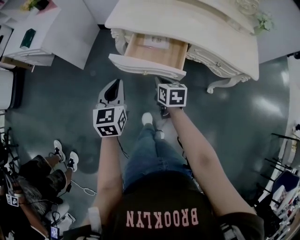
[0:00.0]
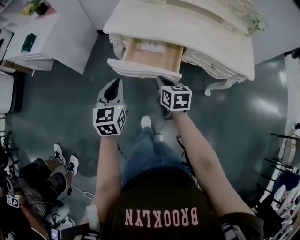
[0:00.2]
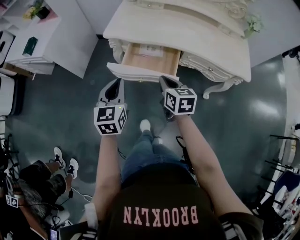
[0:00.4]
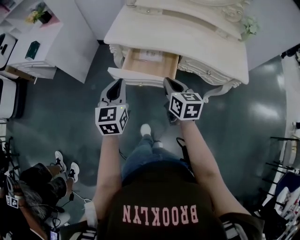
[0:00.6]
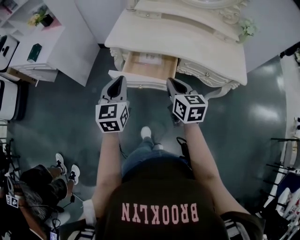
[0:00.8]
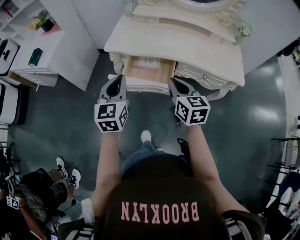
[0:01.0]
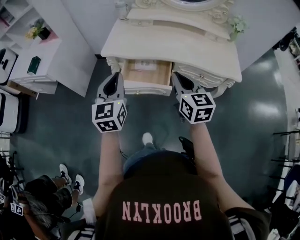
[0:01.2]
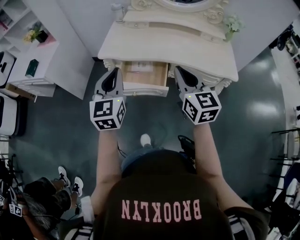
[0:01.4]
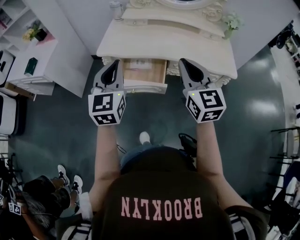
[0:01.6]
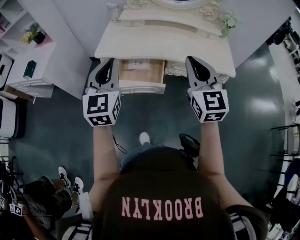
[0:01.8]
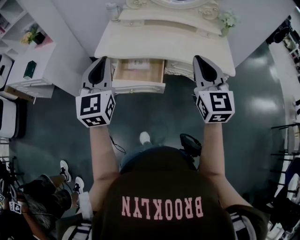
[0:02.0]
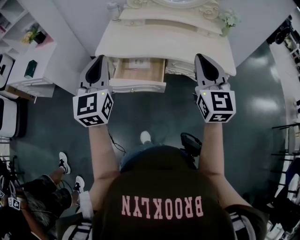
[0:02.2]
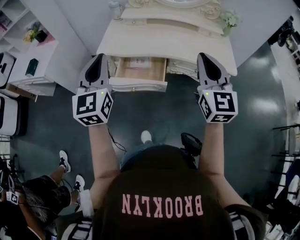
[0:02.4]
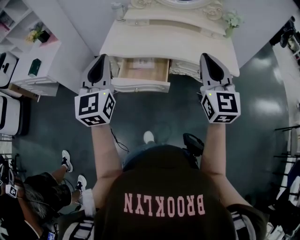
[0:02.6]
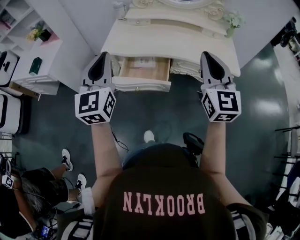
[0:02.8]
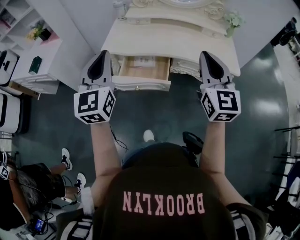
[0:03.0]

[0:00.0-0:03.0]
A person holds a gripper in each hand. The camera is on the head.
0:00.0 to 0:01.6: The left gripper heads upward and to the right, covering approximately 20 cm, and changes its angle by some 20 degrees. The right gripper travels upward and to the right by some 35 cm, and tips its fingers upward by roughly 40 degrees.
0:01.6 to 0:03.0: The left gripper heads upward, covering some 5 cm. The right gripper heads to the right, covering some 5 cm.

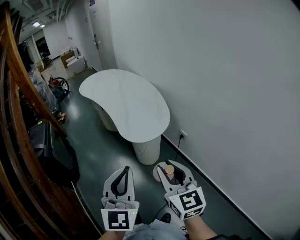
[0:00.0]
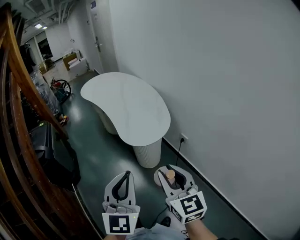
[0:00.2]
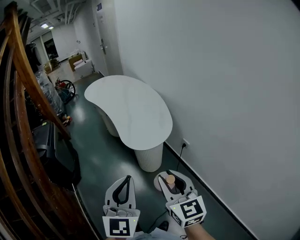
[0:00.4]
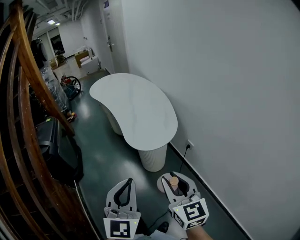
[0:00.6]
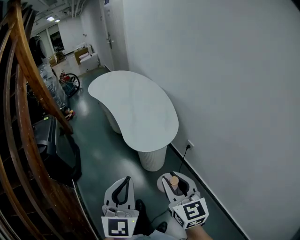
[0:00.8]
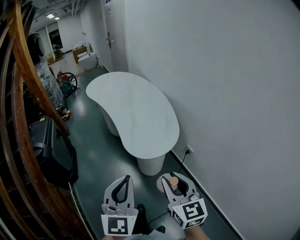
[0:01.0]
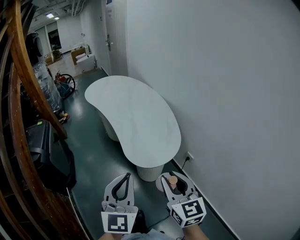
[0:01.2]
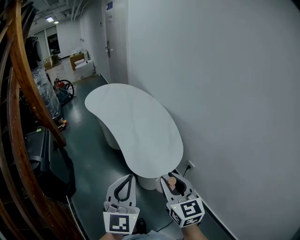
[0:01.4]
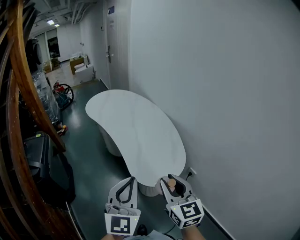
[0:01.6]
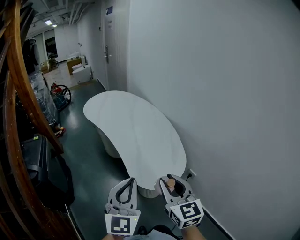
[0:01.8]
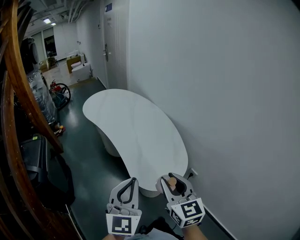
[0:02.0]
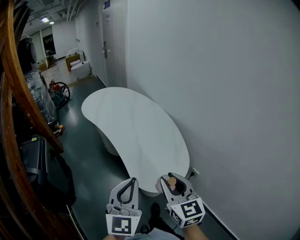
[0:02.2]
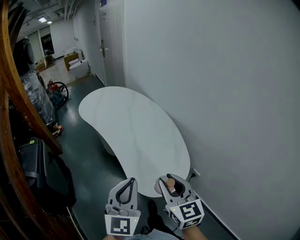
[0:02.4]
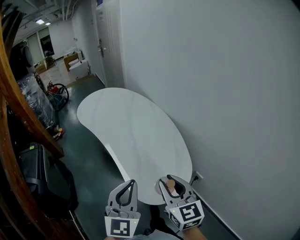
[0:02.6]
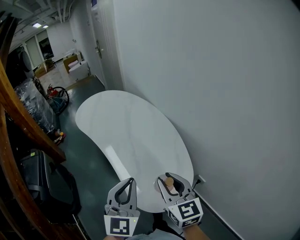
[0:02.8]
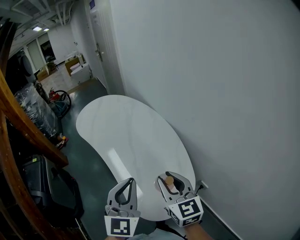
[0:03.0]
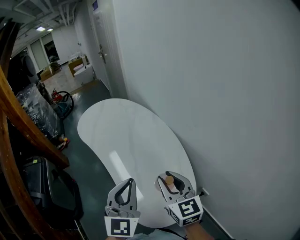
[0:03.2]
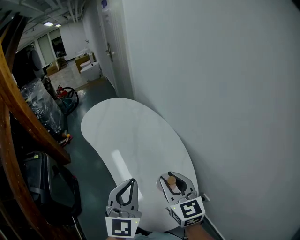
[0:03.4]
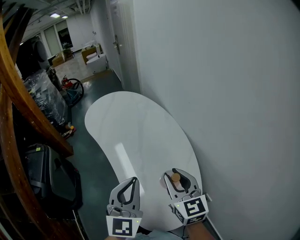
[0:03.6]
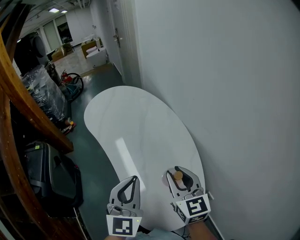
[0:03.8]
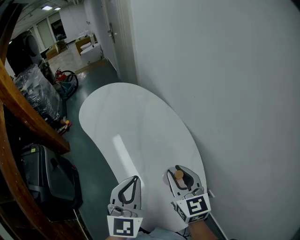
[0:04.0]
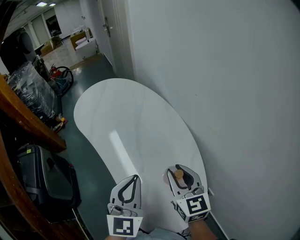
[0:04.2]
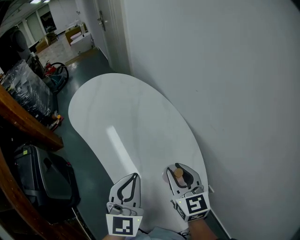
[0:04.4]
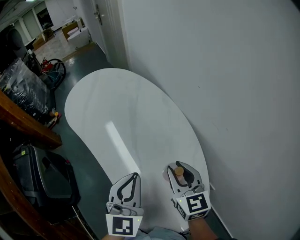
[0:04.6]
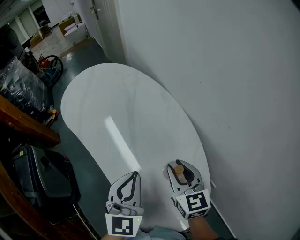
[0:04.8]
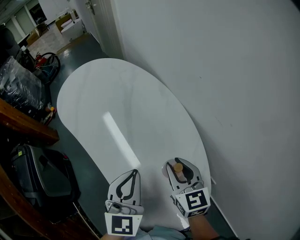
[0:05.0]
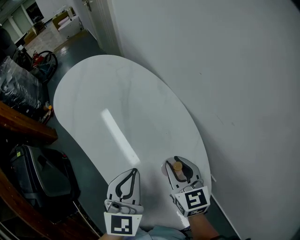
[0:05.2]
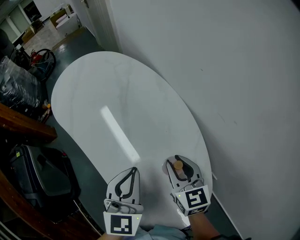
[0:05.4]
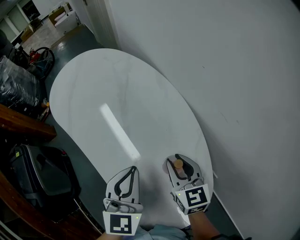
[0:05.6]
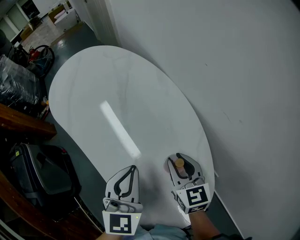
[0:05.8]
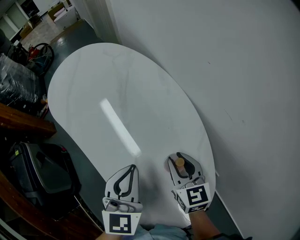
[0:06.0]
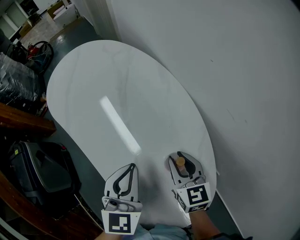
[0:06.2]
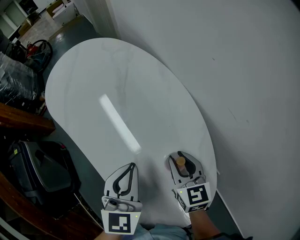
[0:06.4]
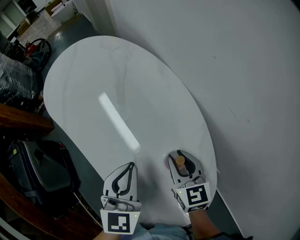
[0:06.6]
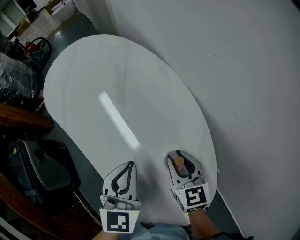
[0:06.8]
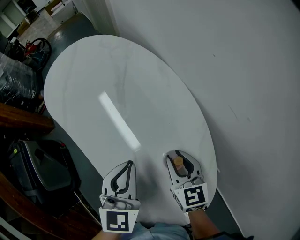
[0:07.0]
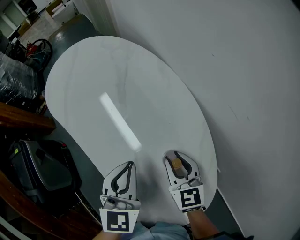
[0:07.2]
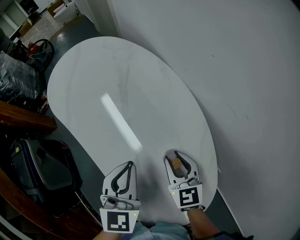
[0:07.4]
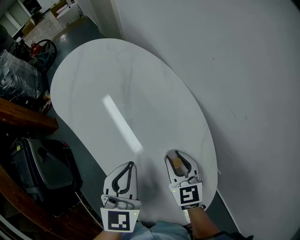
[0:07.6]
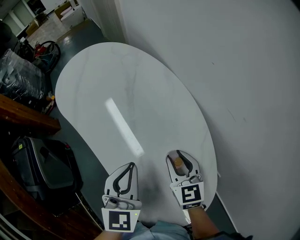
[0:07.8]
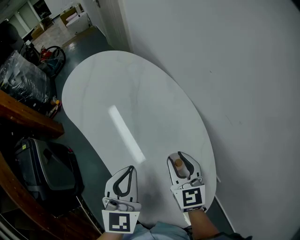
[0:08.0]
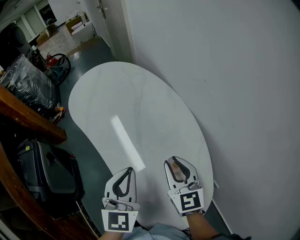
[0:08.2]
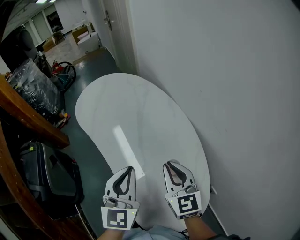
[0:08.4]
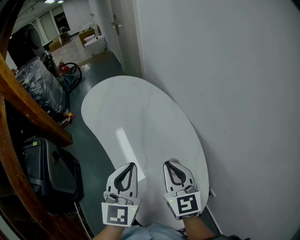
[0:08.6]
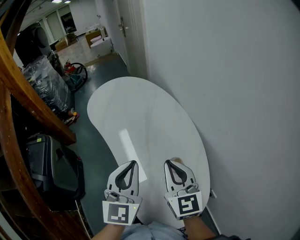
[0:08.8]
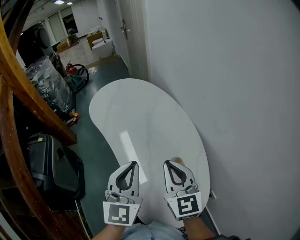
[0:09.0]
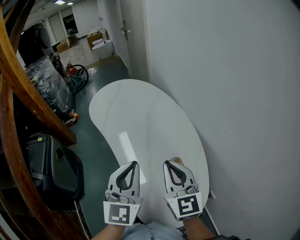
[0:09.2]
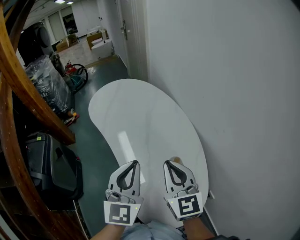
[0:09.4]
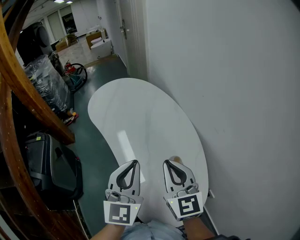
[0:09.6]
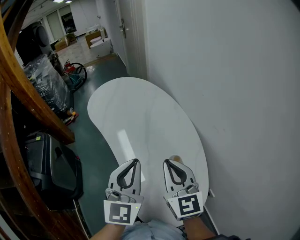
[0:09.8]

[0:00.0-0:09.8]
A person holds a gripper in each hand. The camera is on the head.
0:00.0 to 0:01.4: The two grippers go roughly 15 cm forward. The left gripper swivels about 20 degrees.
0:01.4 to 0:02.8: The grippers both shift forward by about 15 cm. The left gripper rotates about 20 degrees.
0:02.8 to 0:04.2: Both grippers travel together forward, roughly 15 cm.
0:04.2 to 0:05.6: Both grippers travel together downward, approximately 5 cm.
0:05.6 to 0:07.0: The grippers move only a little.
0:07.0 to 0:08.4: The two grippers go some 10 cm upward.
0:08.4 to 0:09.8: The left gripper changes place by roughly 5 cm; the right gripper is displaced upward by approximately 5 cm.

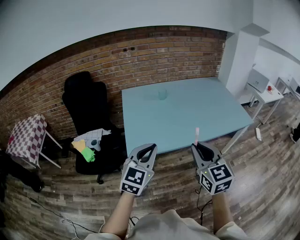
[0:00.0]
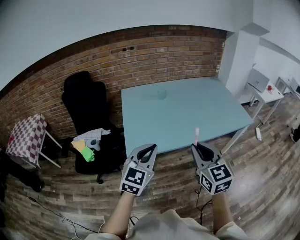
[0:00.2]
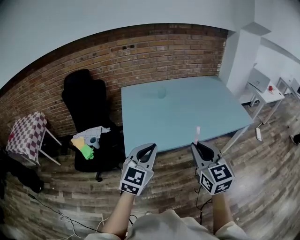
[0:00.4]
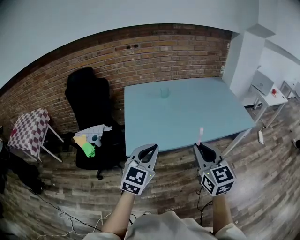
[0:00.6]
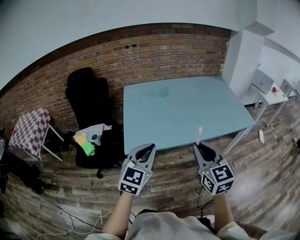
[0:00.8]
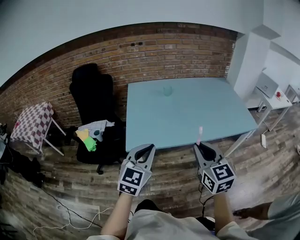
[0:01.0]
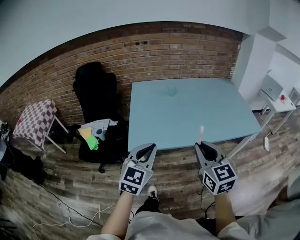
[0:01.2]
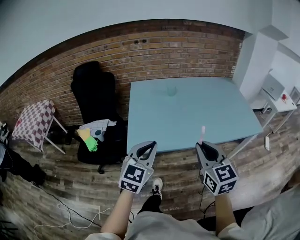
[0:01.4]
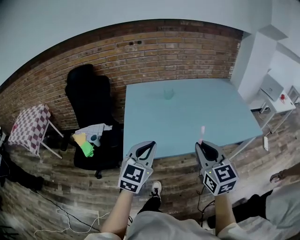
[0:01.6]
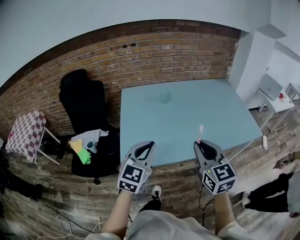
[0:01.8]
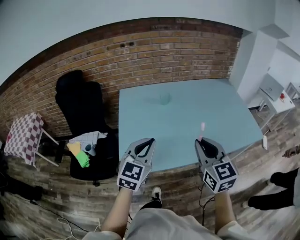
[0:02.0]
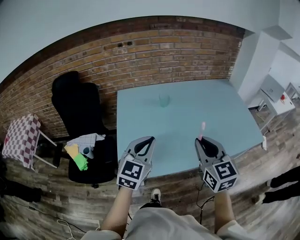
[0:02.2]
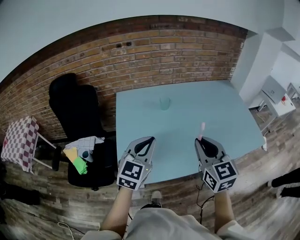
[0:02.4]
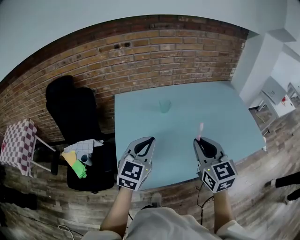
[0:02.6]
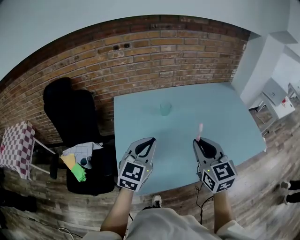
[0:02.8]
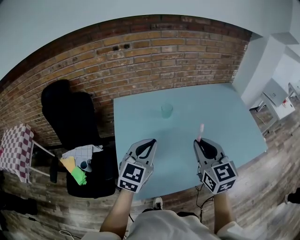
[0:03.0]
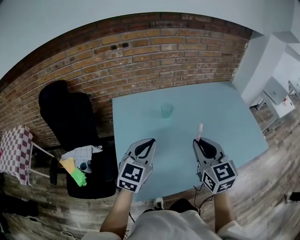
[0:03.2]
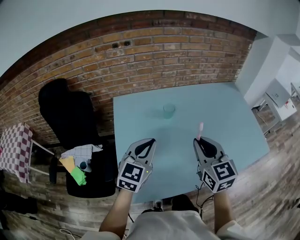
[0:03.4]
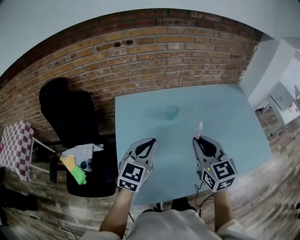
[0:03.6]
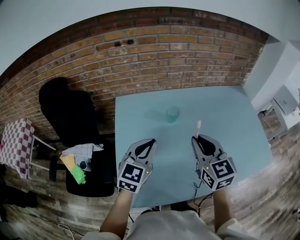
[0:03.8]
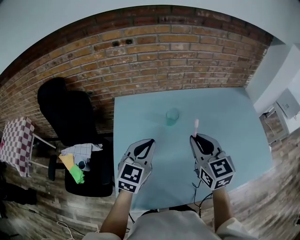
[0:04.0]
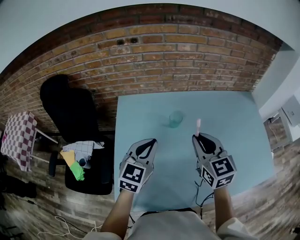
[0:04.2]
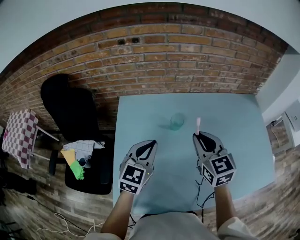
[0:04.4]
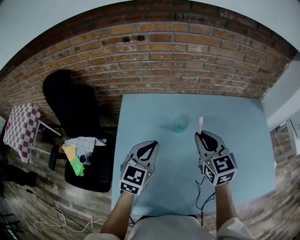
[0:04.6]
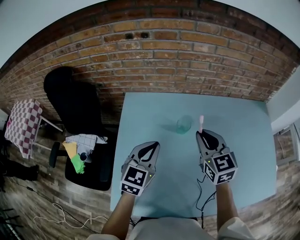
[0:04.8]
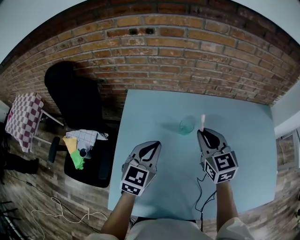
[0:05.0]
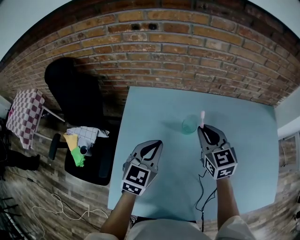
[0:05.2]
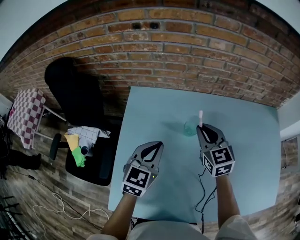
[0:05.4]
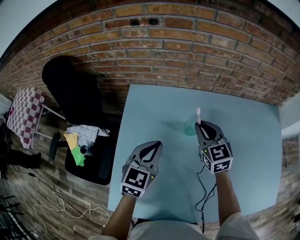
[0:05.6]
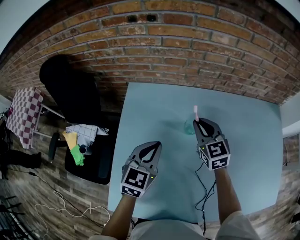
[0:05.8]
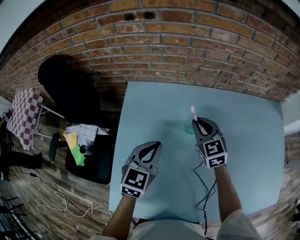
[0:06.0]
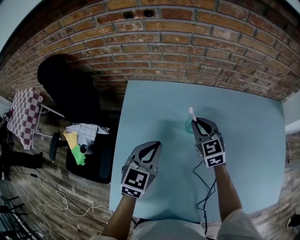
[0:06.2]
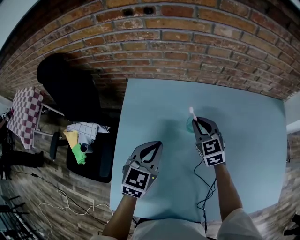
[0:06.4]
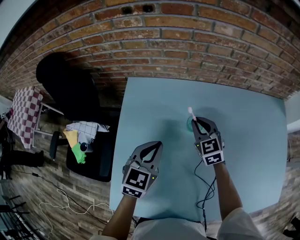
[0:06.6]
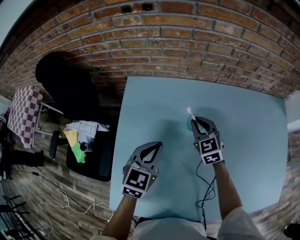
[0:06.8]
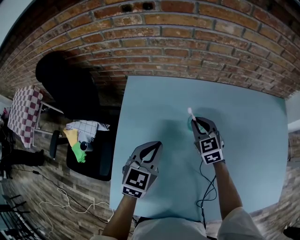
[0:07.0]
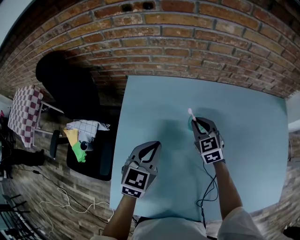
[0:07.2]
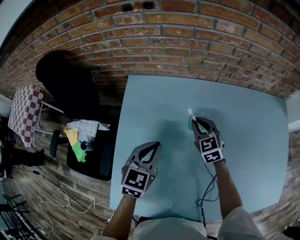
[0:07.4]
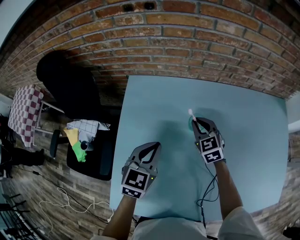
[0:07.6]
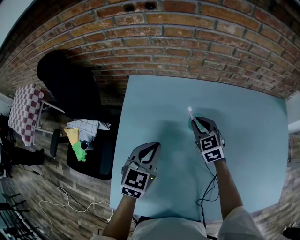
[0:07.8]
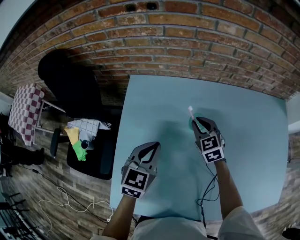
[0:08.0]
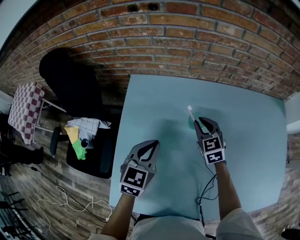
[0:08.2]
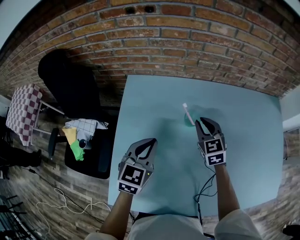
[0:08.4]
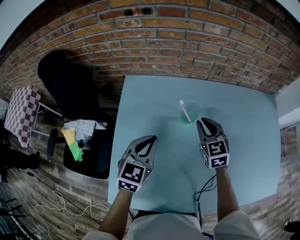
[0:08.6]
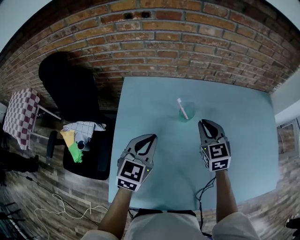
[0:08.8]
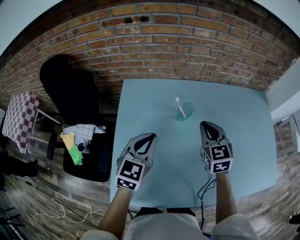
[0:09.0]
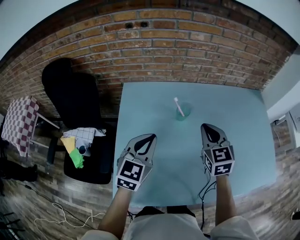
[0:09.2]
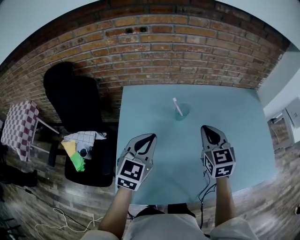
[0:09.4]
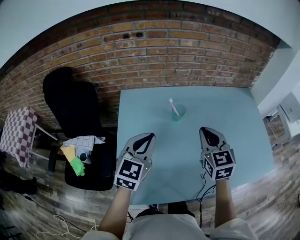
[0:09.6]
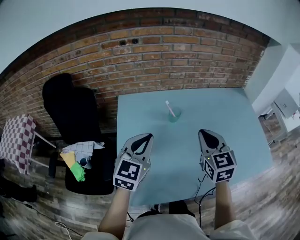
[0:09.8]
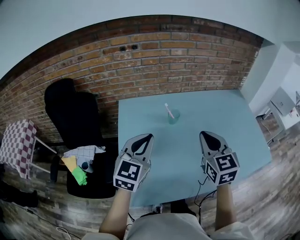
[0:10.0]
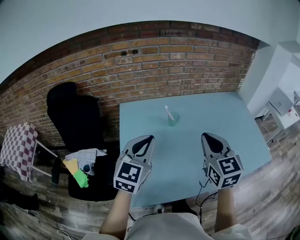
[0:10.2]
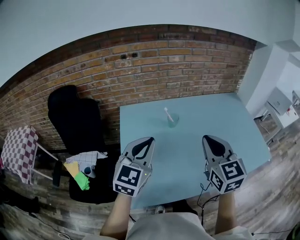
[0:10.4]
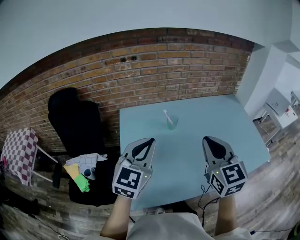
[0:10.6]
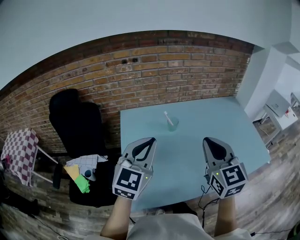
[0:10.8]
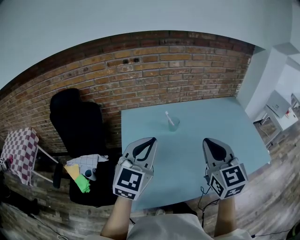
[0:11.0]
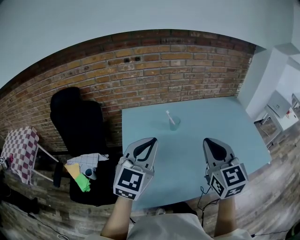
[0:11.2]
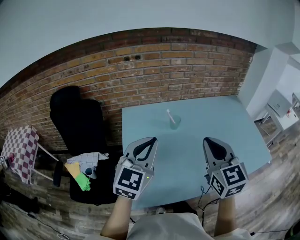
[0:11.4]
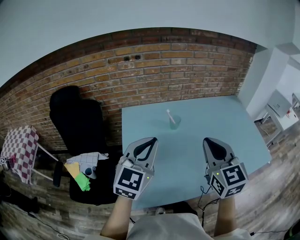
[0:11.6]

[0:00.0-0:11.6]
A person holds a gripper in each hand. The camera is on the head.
0:00.0 to 0:01.4: The right gripper changes place by about 5 cm.
0:01.4 to 0:02.8: The grippers both shift forward by roughly 30 cm.
0:02.8 to 0:04.4: The two grippers go about 20 cm forward.
0:04.4 to 0:05.8: The right gripper shifts approximately 20 cm forward and downward. Meanwhile the left gripper is displaced downward and forward by some 10 cm.
0:05.8 to 0:07.2: The right gripper shifts some 10 cm downward.
0:07.2 to 0:08.8: The right gripper moves upward, backward and to the right, some 15 cm; the left gripper travels upward by approximately 5 cm.
0:08.8 to 0:10.2: The right gripper shifts approximately 30 cm backward and upward. The left gripper goes approximately 20 cm upward and backward.
0:10.2 to 0:11.6: The left gripper moves approximately 5 cm, while the right gripper ends up some 5 cm from where it was.
